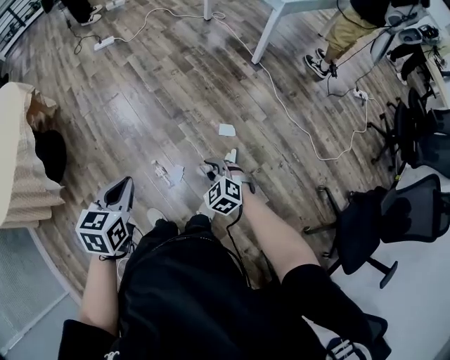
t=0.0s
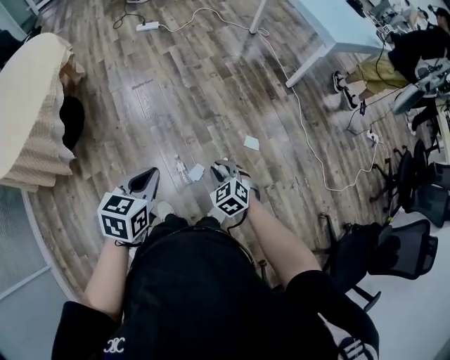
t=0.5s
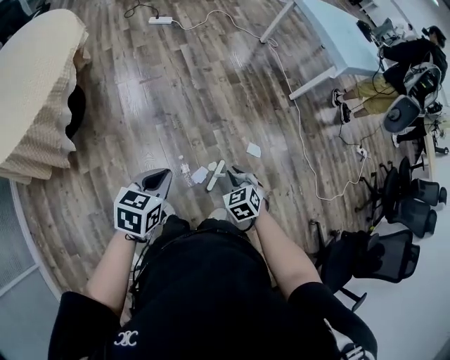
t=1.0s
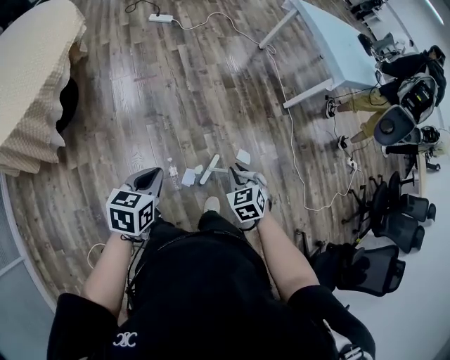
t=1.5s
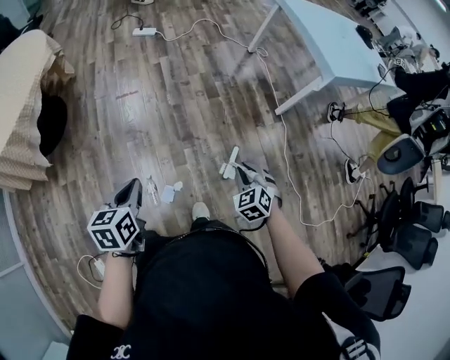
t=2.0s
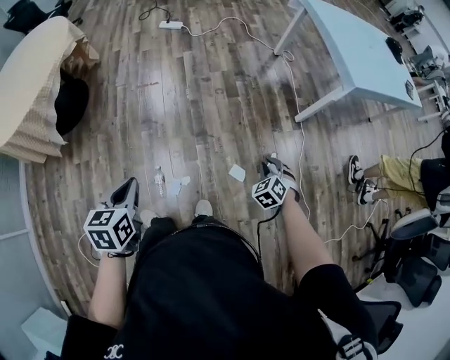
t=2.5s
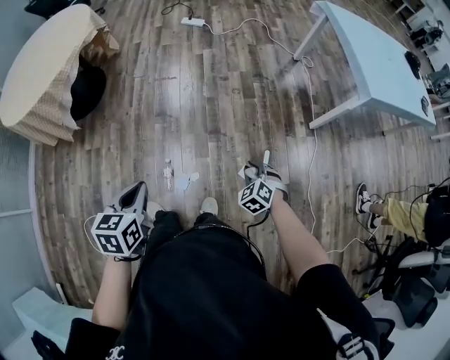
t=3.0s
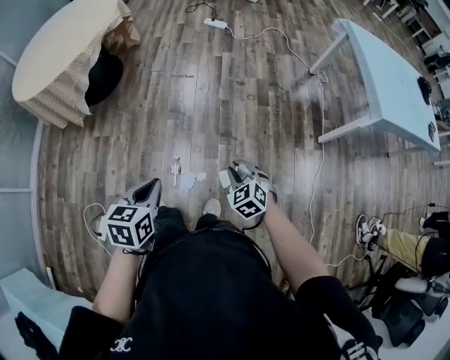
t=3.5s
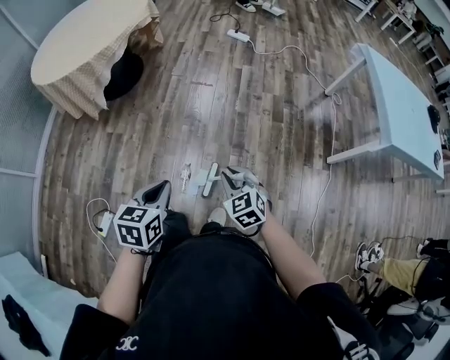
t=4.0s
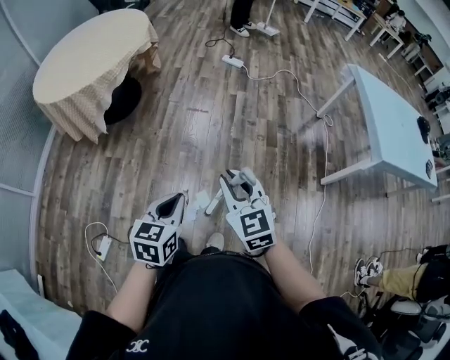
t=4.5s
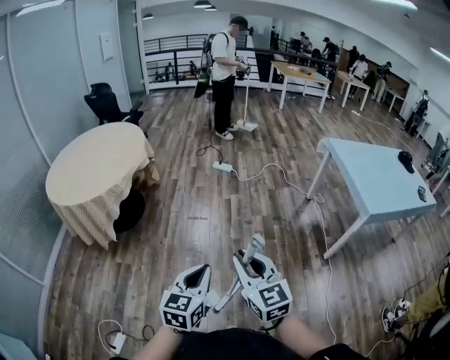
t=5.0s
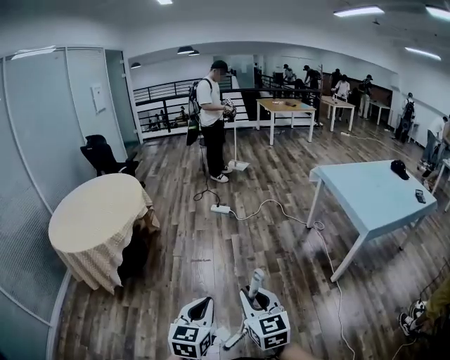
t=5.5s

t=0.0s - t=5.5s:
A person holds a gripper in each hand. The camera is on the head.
t=0.0s - t=2.0s: The left gripper travels forward and downward by roughly 10 cm, travels to the left and back again, some 20 cm each way, and swivels about 30 degrees. Meanwhile the right gripper is displaced forward by roughly 20 cm, and travels to the left and back again, about 20 cm each way.
t=2.0s - t=3.5s: The right gripper swivels roughly 30 degrees. Meanwhile the left gripper changes place by some 10 cm.
t=3.5s - t=5.5s: The left gripper goes approximately 20 cm upward, to the right and forward, and changes its angle by some 30 degrees, while the right gripper moves upward, roughly 35 cm, and points its fingers roughly 40 degrees further upward.

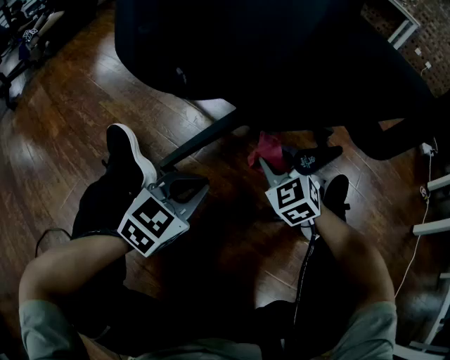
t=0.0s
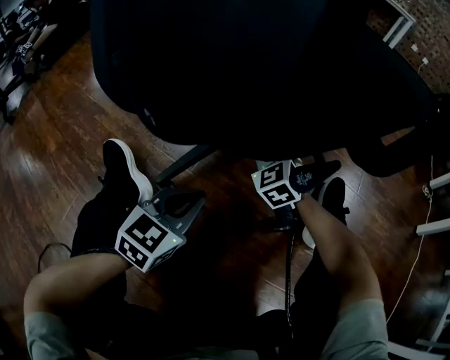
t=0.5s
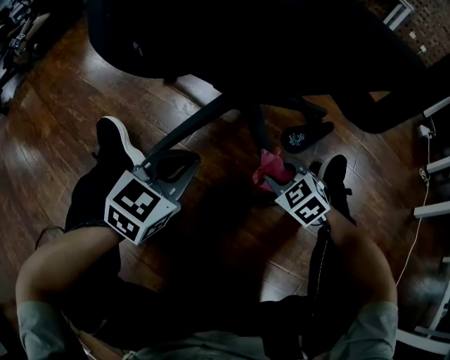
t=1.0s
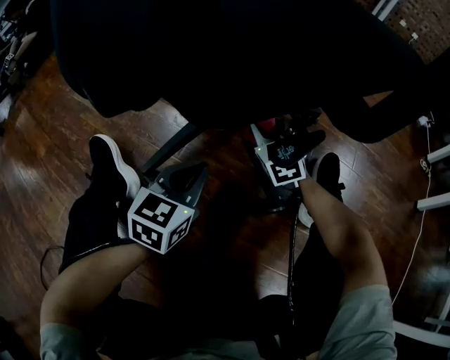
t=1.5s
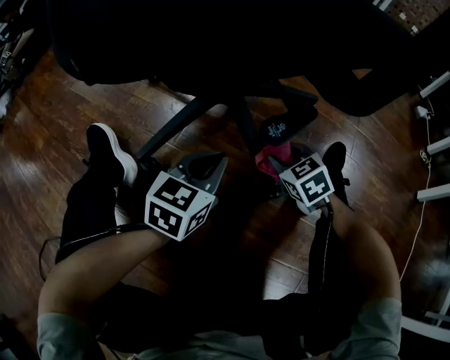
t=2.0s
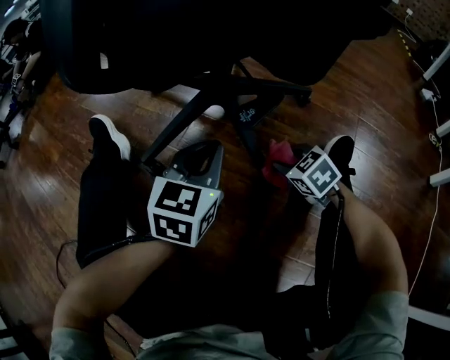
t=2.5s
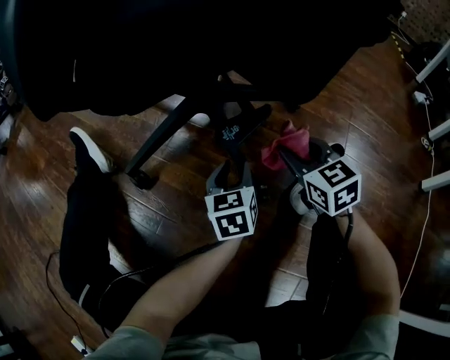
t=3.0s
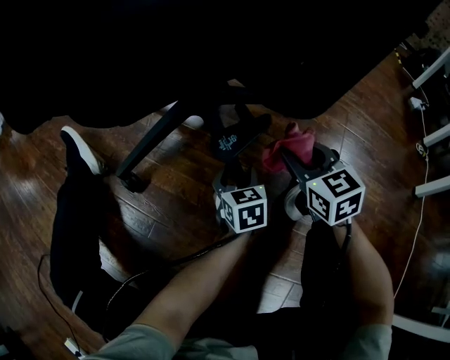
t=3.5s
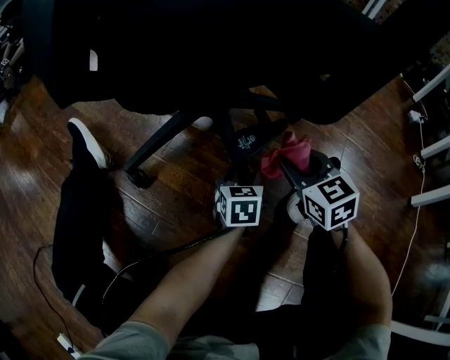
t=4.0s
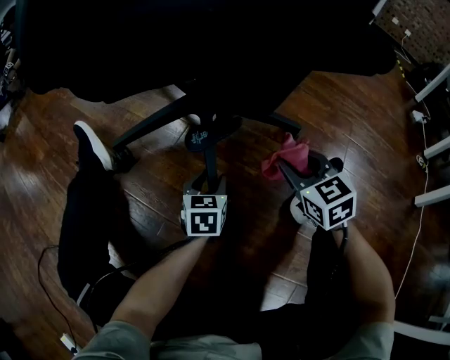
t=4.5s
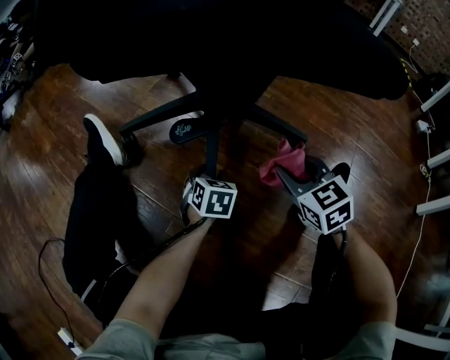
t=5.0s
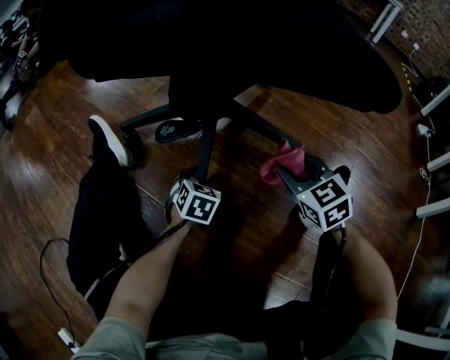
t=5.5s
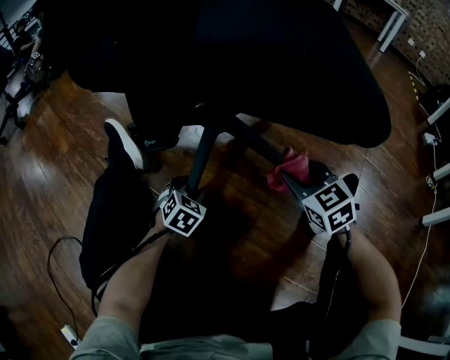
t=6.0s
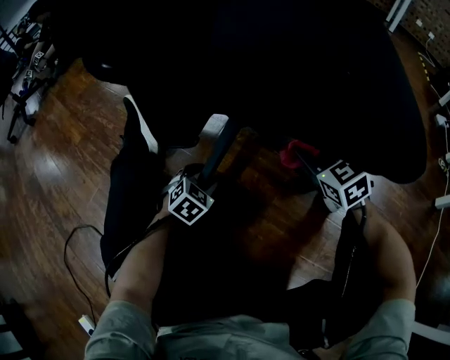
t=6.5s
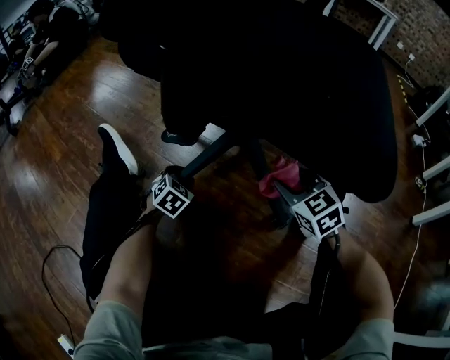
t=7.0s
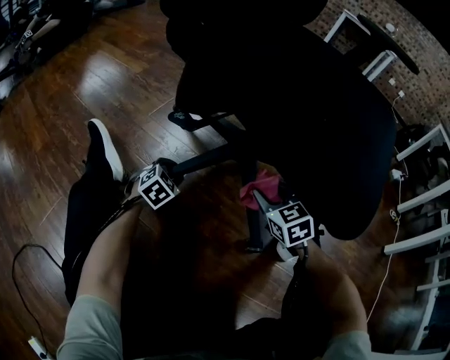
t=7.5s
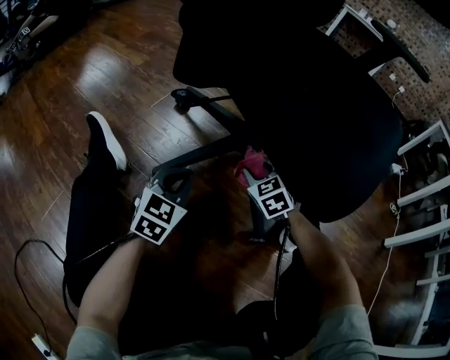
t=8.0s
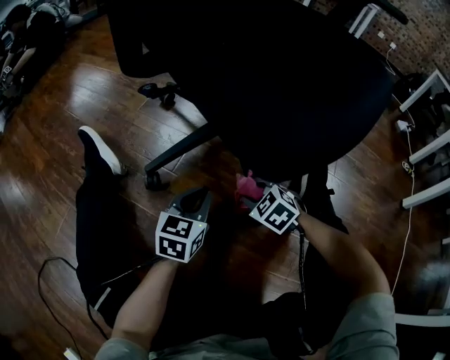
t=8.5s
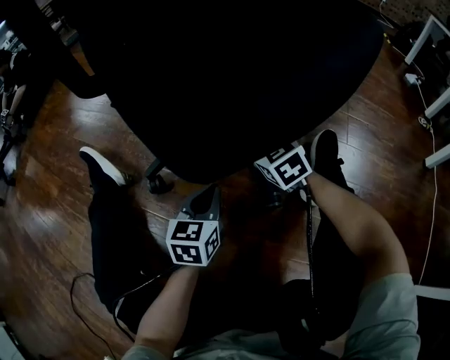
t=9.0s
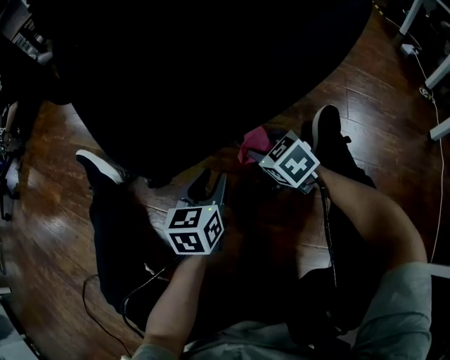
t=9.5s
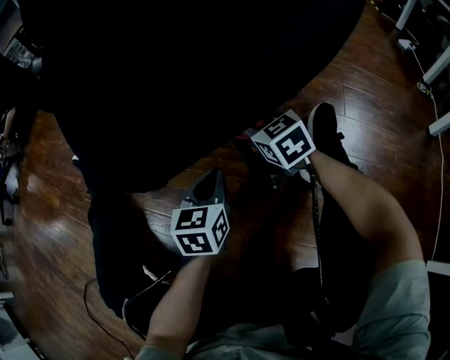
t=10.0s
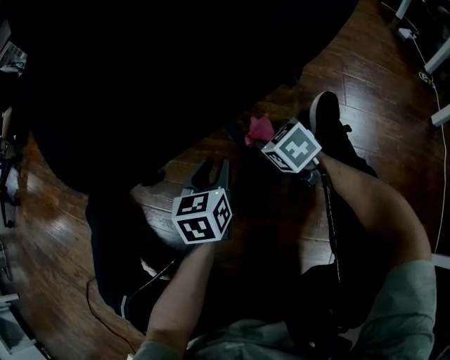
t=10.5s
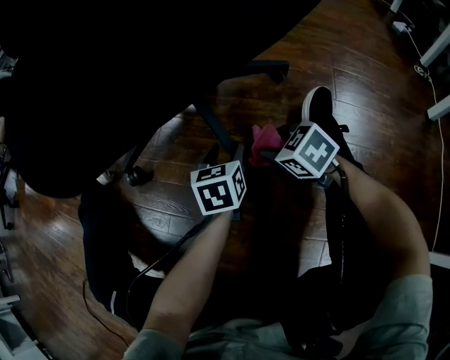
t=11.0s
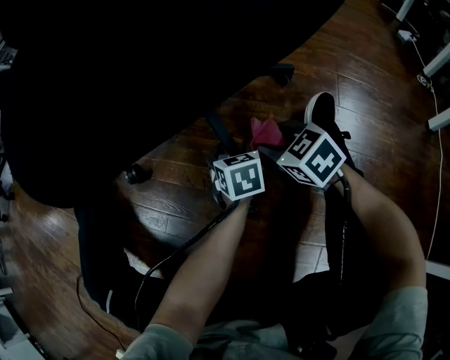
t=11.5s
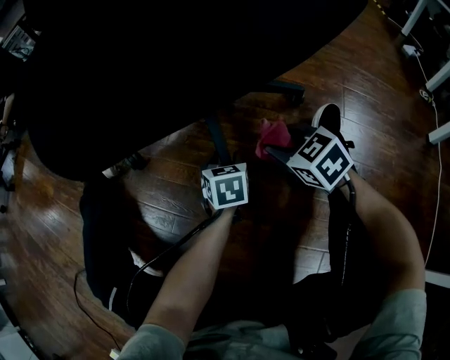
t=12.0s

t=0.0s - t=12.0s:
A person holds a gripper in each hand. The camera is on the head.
t=0.0s - t=2.0s: The left gripper moves to the right, roughly 10 cm. Meanwhile the right gripper moves forward and backward over roughly 15 cm, changing direction 3 times, and rotates roughly 30 degrees.
t=2.0s - t=4.0s: The left gripper is displaced downward and to the right by approximately 15 cm, rotates some 30 degrees, and opens its fingers, while the right gripper travels upward and to the right by roughly 10 cm.
t=4.0s - t=6.0s: The right gripper is displaced to the left by some 10 cm. The left gripper is displaced to the left by approximately 25 cm, and changes its angle by some 40 degrees.
t=6.0s - t=8.0s: The right gripper is displaced forward, downward and to the left by approximately 15 cm. Meanwhile the left gripper is displaced upward by about 15 cm, reaches approximately 10 cm forward, then returns, rotates some 30 degrees, and closes.
t=8.0s - t=10.0s: The right gripper swings forward and backward, about 15 cm each way, with 3 reversals, and turns by roughly 30 degrees. Meanwhile the left gripper moves to the right and backward, about 15 cm, rotates some 20 degrees, and opens, then closes again.
t=10.0s - t=12.0s: The left gripper travels downward by about 10 cm, and opens up; the right gripper is displaced backward by roughly 10 cm.

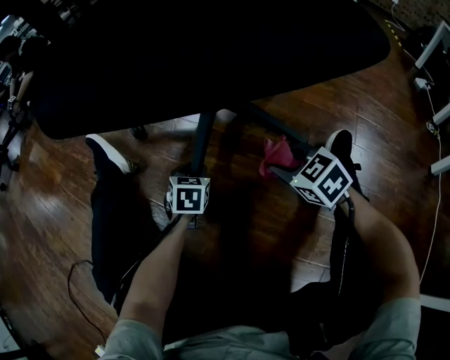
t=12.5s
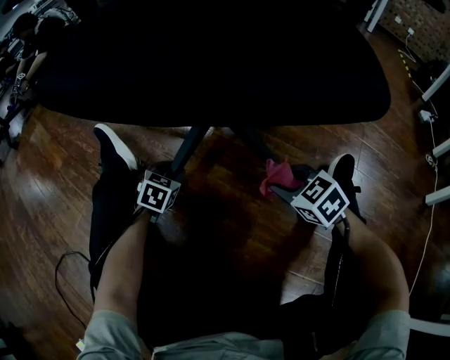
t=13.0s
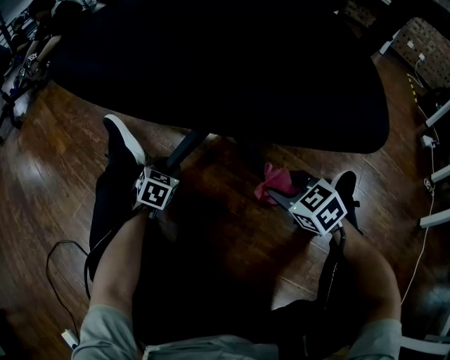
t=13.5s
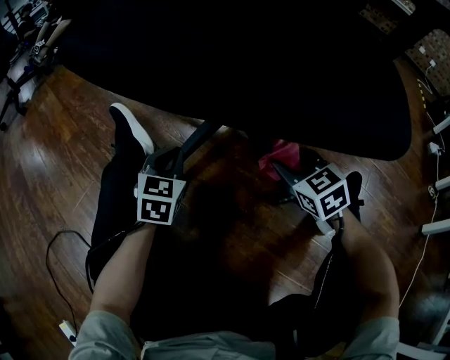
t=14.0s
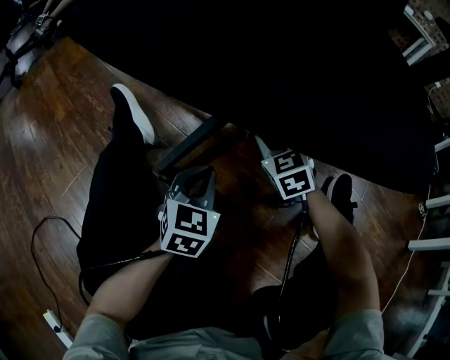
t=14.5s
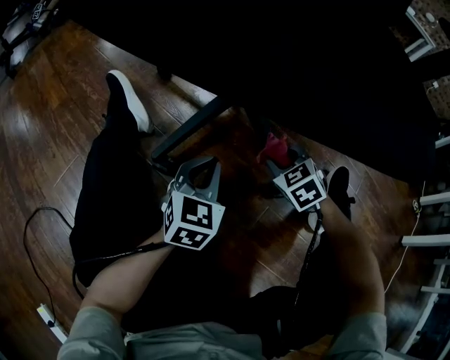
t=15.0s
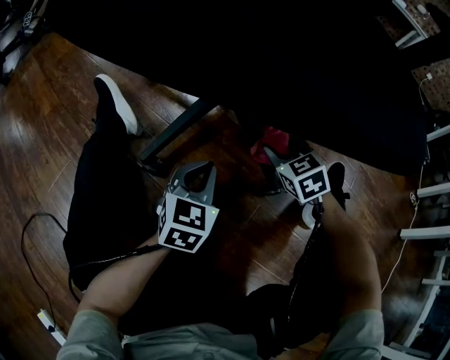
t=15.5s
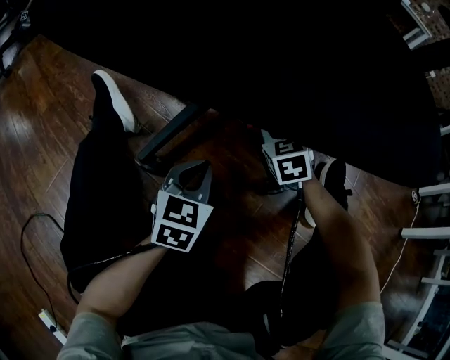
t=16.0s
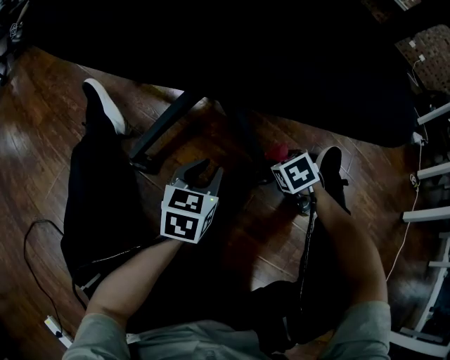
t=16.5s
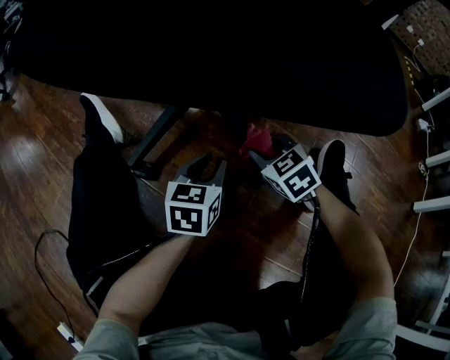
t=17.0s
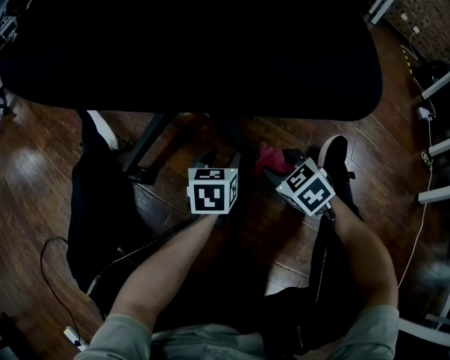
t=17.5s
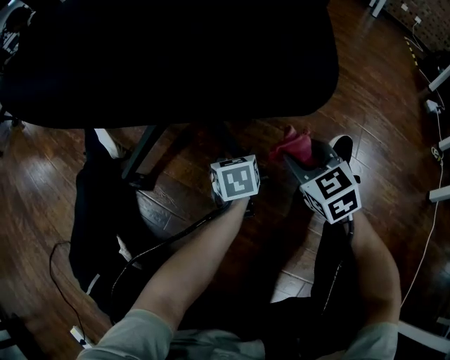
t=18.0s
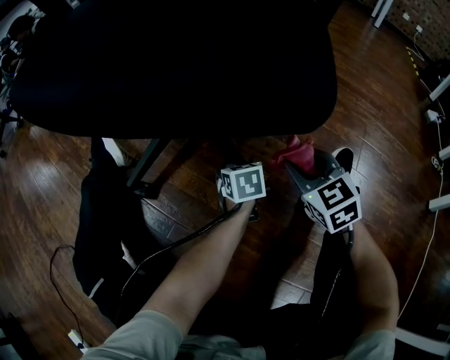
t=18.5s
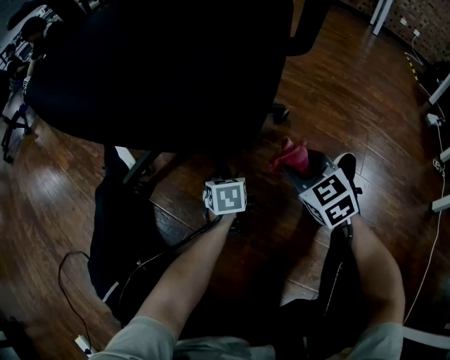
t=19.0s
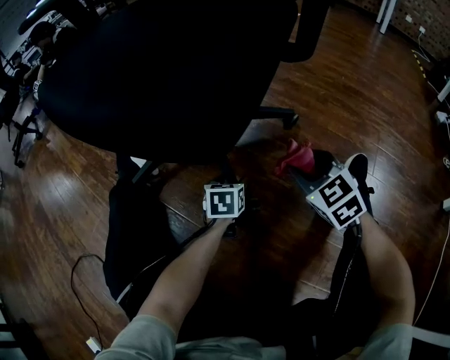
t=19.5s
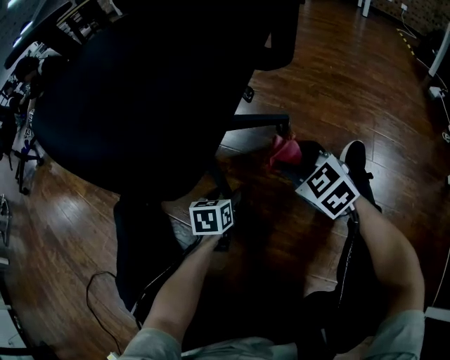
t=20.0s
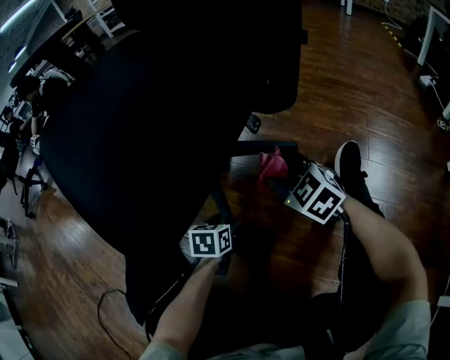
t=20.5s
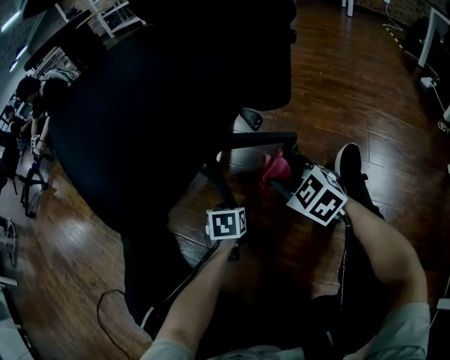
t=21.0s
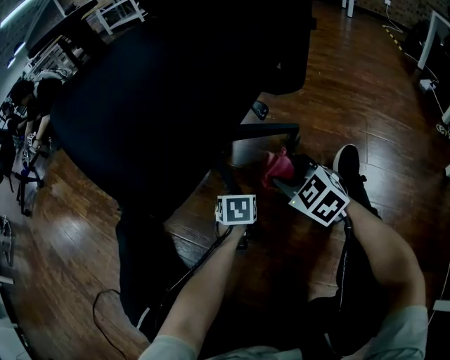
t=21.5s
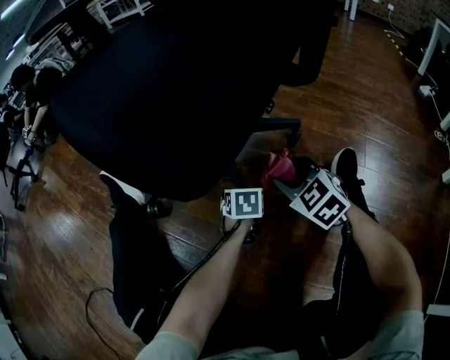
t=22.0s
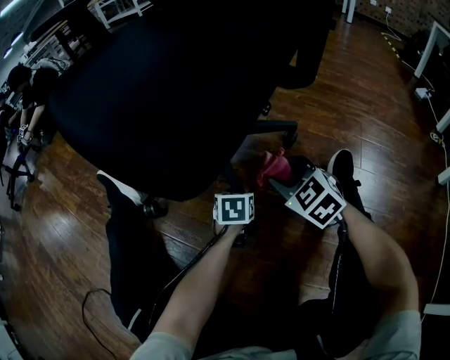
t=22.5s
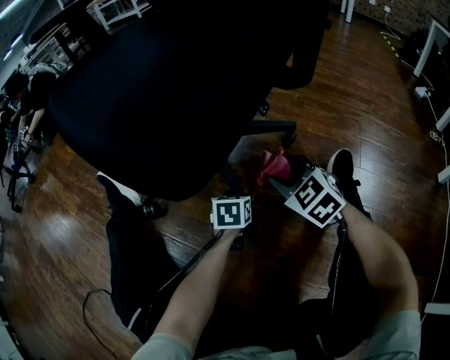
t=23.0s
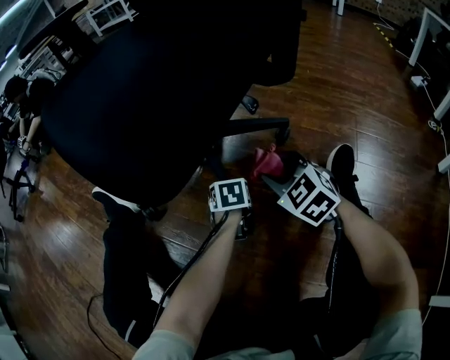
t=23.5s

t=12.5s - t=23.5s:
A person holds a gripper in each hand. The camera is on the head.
t=12.5s - t=14.5s: The left gripper moves upward and to the left, roughly 15 cm, and closes. The right gripper heads forward and to the left, covering some 20 cm, and rotates approximately 20 degrees.
t=14.5s - t=16.0s: The right gripper goes roughly 5 cm to the right, and moves approximately 5 cm backward and comes back.
t=16.0s - t=18.0s: The right gripper goes left and right, approximately 15 cm each way, reversing 2 times. Meanwhile the left gripper shifts some 20 cm to the right, turns by some 30 degrees, and opens its fingers.
t=18.0s - t=20.0s: The right gripper shifts about 10 cm to the left, while the left gripper is displaced to the left by approximately 15 cm.
t=20.0s - t=21.5s: The left gripper heads to the right, covering about 5 cm.
t=21.5s - t=23.5s: The grippers make only small movements.
